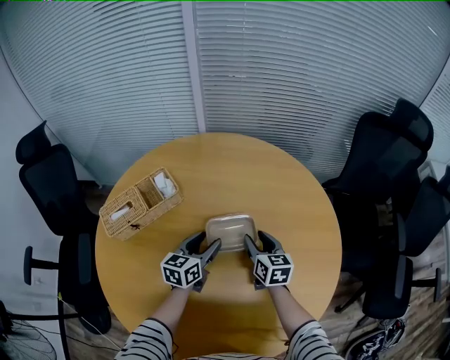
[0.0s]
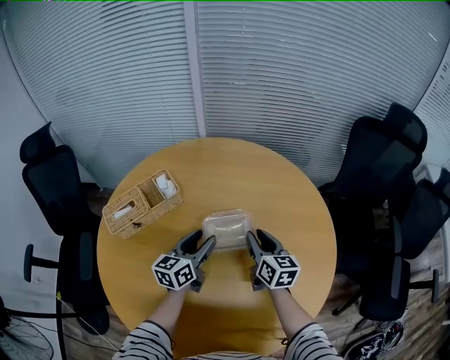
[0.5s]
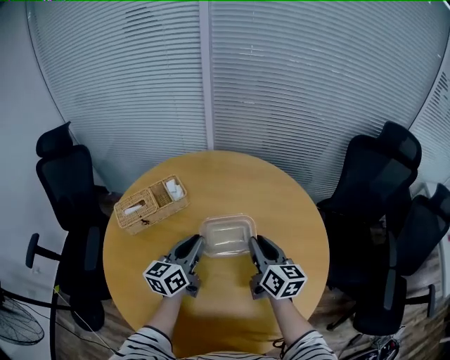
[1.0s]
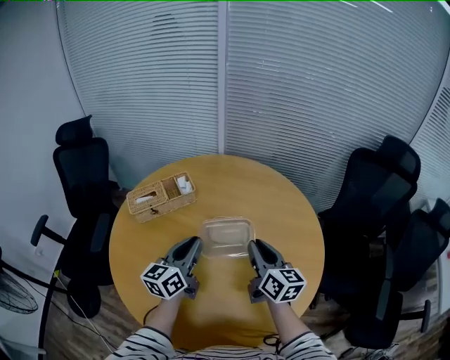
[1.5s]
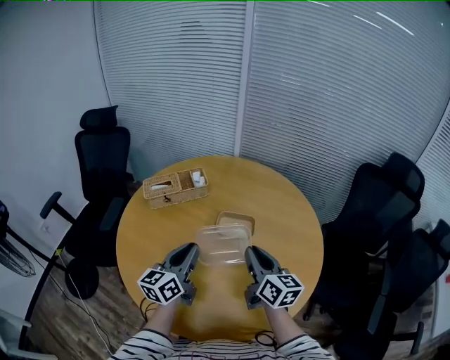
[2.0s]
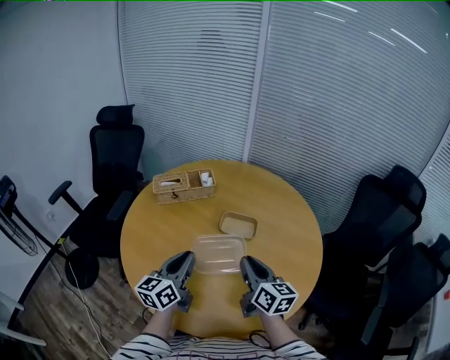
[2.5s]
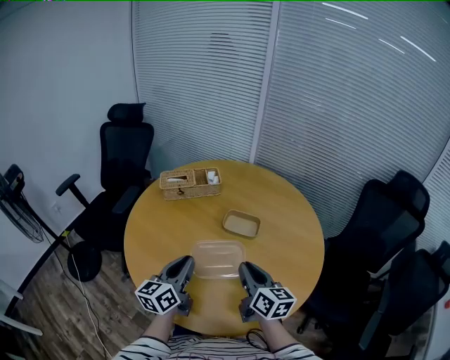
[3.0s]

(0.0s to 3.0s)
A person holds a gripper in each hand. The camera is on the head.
0.0s - 1.5s: The grippers both shift upward and backward by about 25 cm. The left gripper swivels some 30 degrees, and closes up; the right gripper swivels approximately 20 degrees, and closes its fingers.
1.5s - 3.0s: Both grippers travel together backward, about 15 cm.

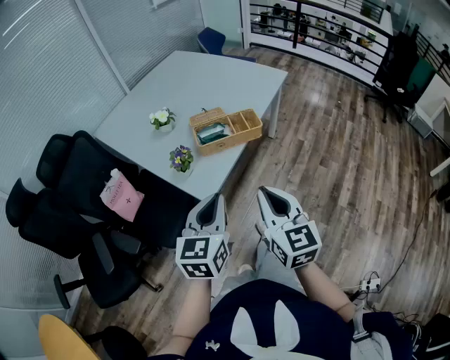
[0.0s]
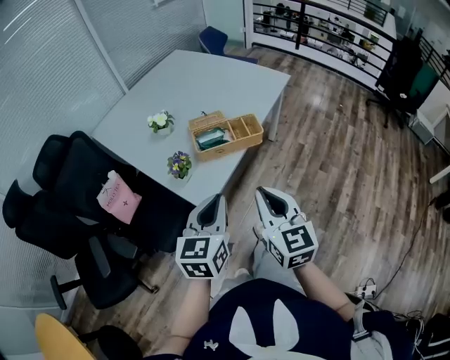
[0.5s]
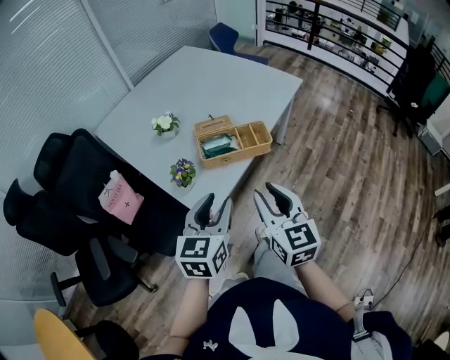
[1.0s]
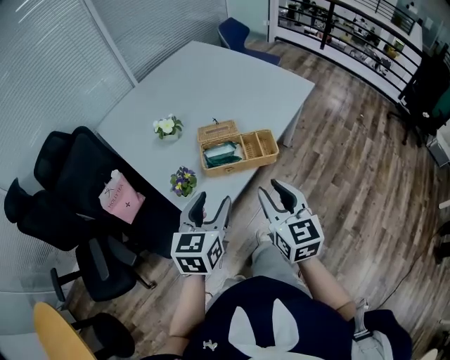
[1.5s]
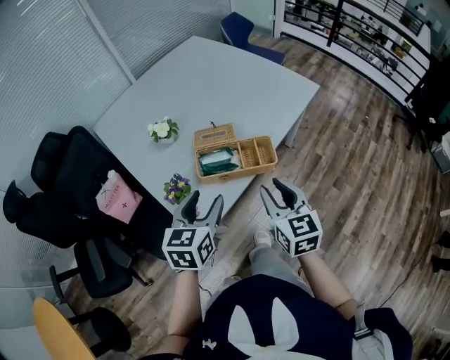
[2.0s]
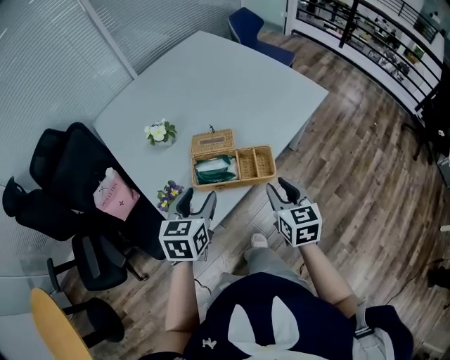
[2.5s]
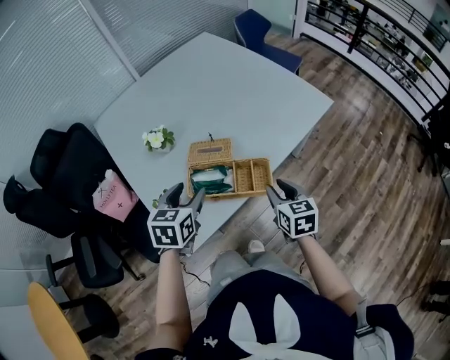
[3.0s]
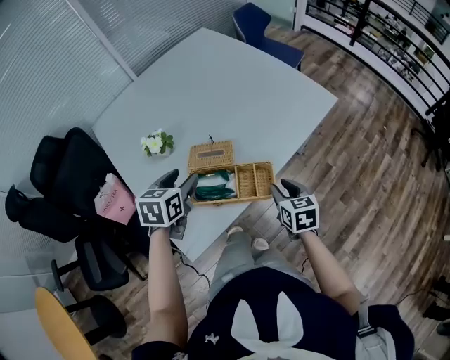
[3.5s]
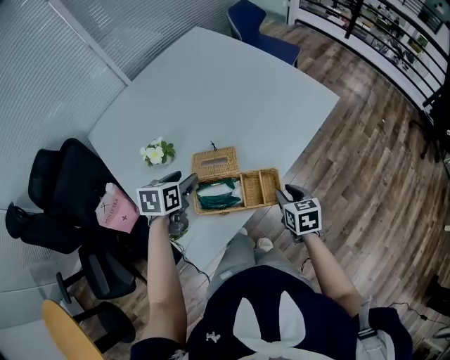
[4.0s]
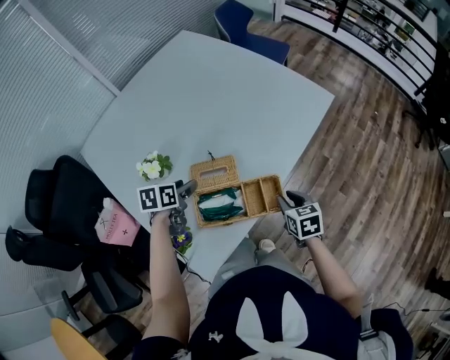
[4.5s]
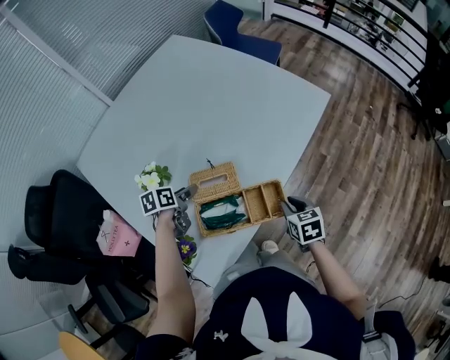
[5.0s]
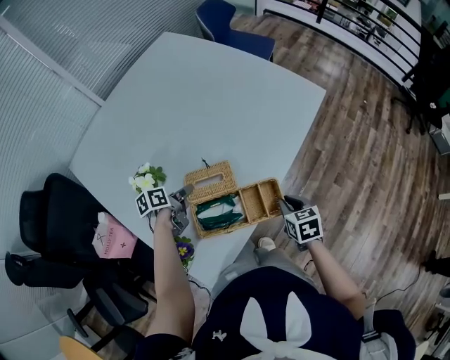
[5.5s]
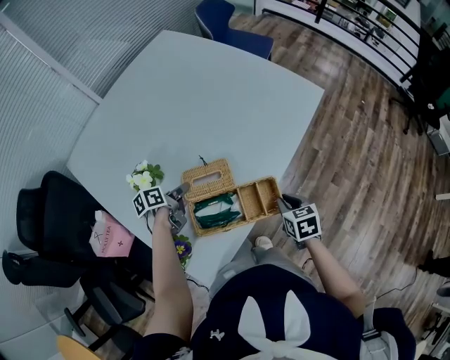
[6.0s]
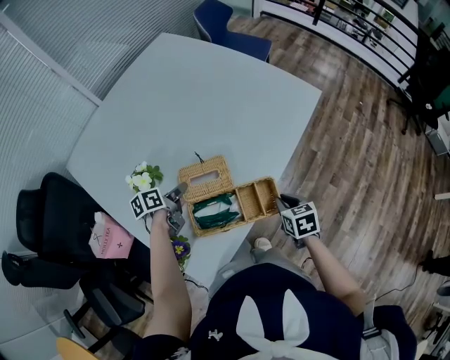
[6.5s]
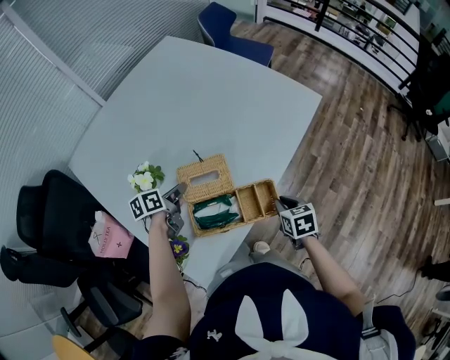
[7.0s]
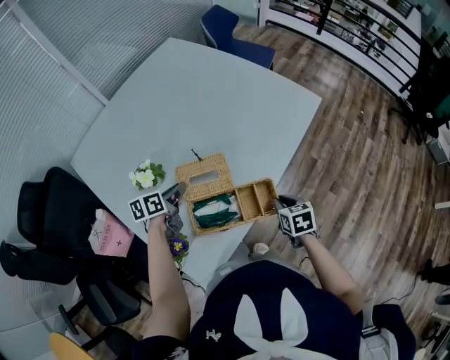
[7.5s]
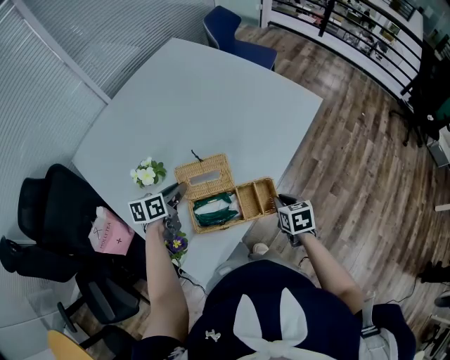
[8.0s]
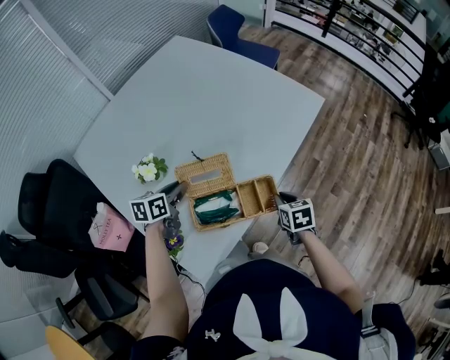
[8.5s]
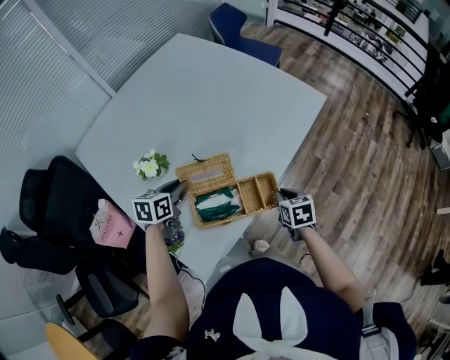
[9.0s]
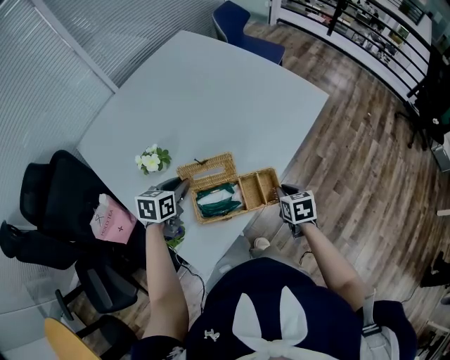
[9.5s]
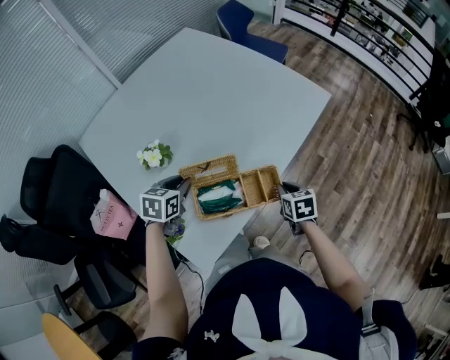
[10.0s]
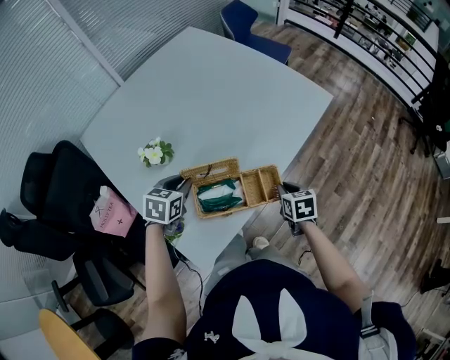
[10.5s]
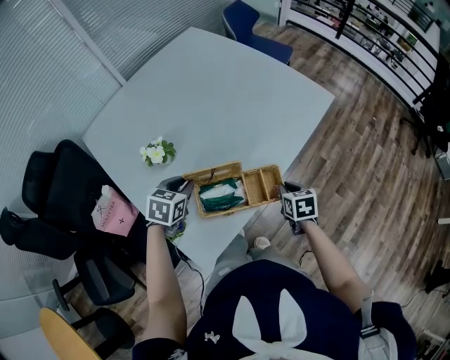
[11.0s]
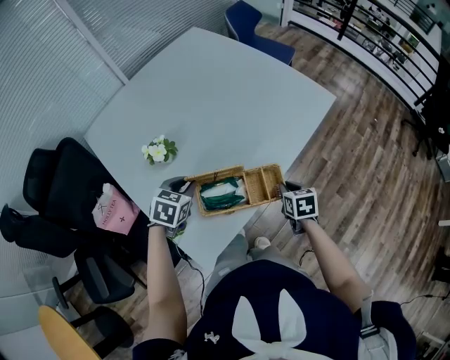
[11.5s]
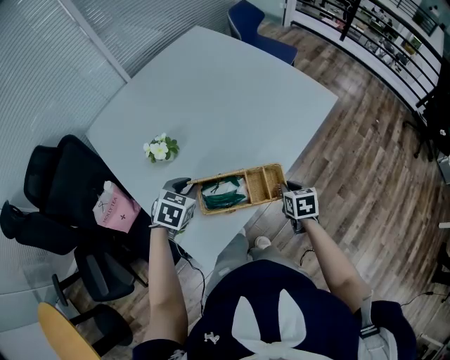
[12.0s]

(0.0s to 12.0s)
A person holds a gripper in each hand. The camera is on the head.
0.0s - 2.0s: Both grippers travel together forward, about 20 cm. The left gripper opens. The right gripper opens.
2.0s - 4.0s: The left gripper shifts roughly 25 cm forward and downward, and turns by some 20 degrees. The right gripper moves downward, forward and to the right, roughly 25 cm, and rotates roughly 30 degrees.
4.0s - 6.0s: The left gripper is displaced downward and forward by about 15 cm, rotates approximately 40 degrees, and closes its fingers.
6.0s - 8.0s: The left gripper travels upward by some 5 cm, and rotates about 30 degrees.
8.0s - 10.0s: The left gripper rotates about 30 degrees.
10.0s - 12.0s: The grippers make only small movements.

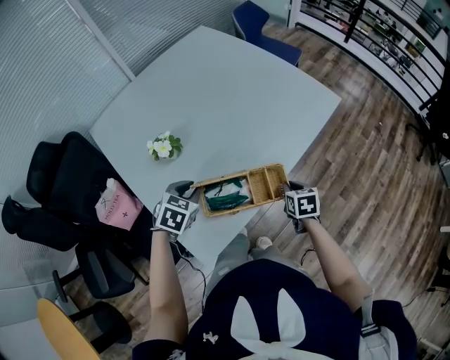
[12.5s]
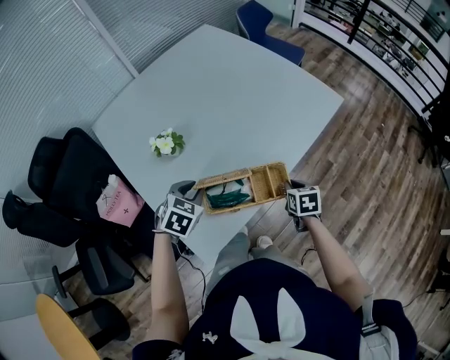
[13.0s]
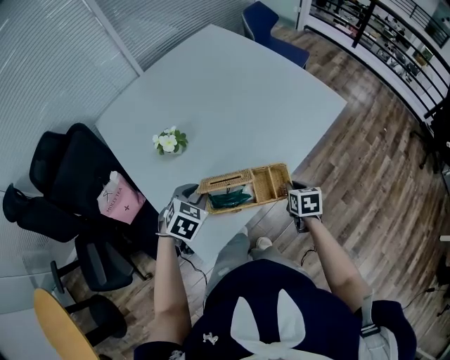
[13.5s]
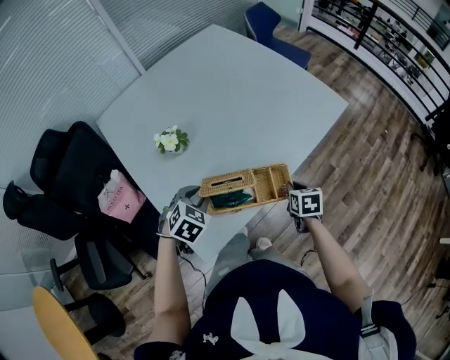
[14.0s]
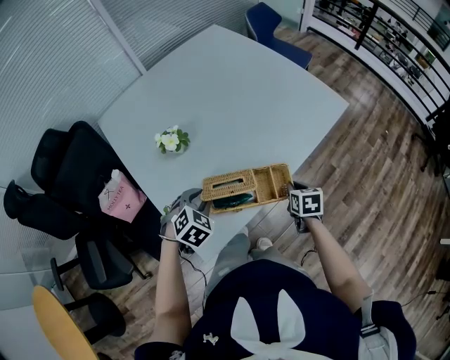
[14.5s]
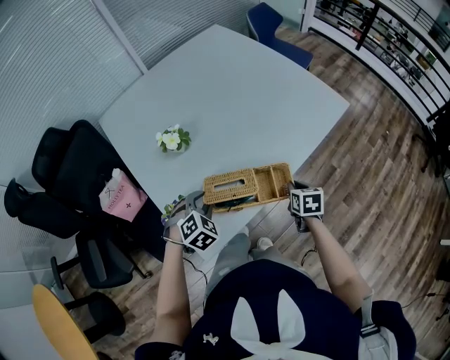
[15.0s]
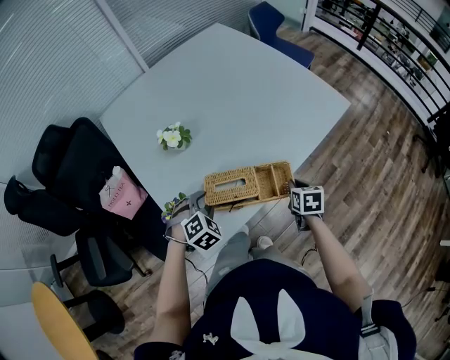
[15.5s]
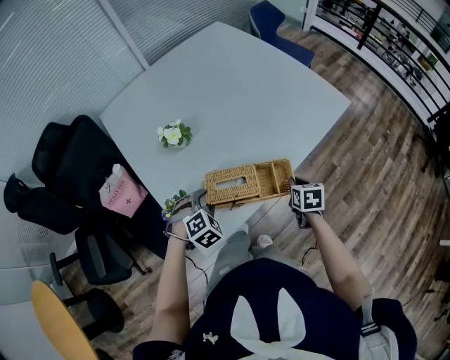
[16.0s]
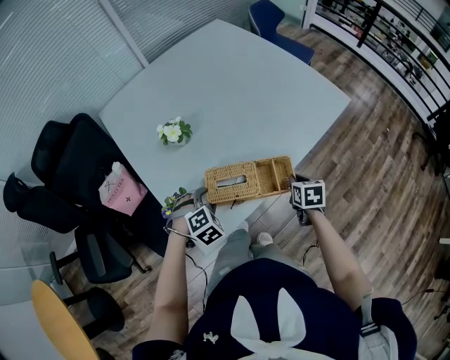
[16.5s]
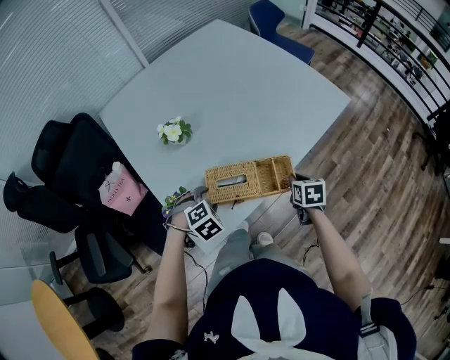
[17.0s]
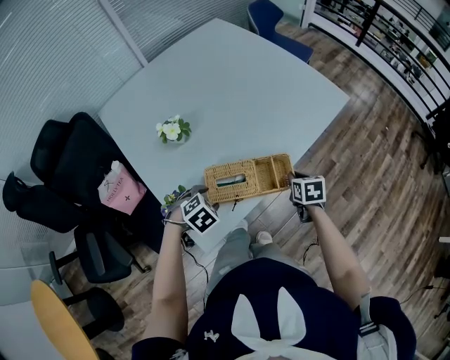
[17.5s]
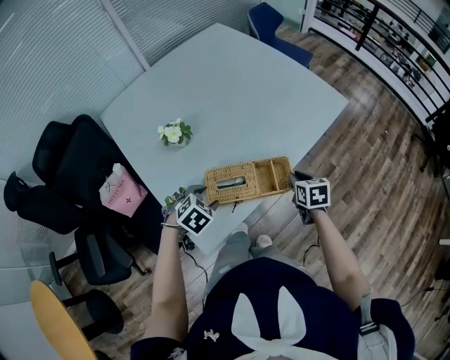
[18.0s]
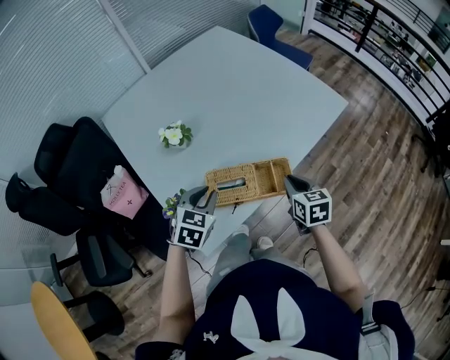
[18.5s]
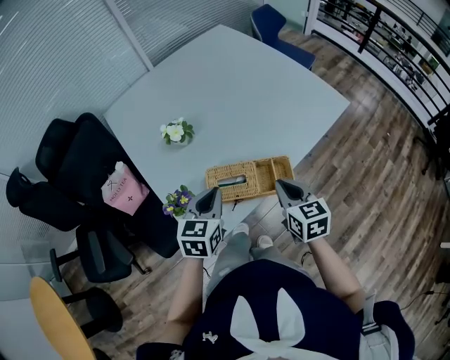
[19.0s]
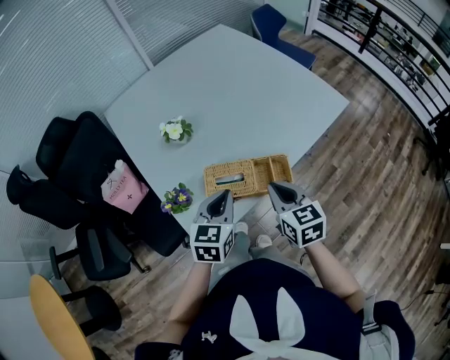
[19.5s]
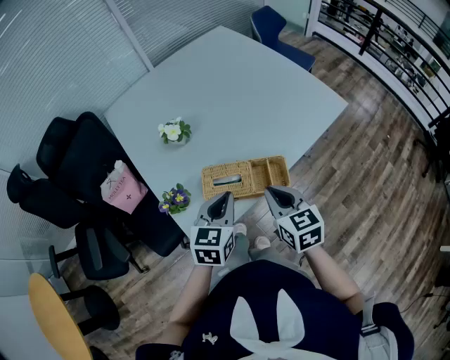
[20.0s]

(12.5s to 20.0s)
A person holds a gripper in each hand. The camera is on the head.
12.5s - 14.5s: The left gripper ends up some 5 cm from where it was.
14.5s - 16.5s: The left gripper heads downward, covering about 5 cm, and opens its fingers.
16.5s - 18.0s: The left gripper changes its angle by roughly 20 degrees.
18.0s - 20.0s: The right gripper travels upward, to the left and backward by roughly 20 cm, and swivels roughly 30 degrees; the left gripper is displaced upward and to the right by roughly 15 cm, tilts its fingers some 40 degrees upward, and closes its fingers.

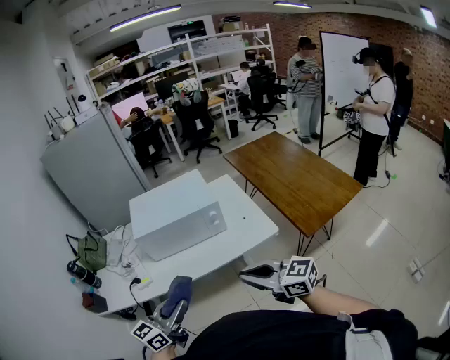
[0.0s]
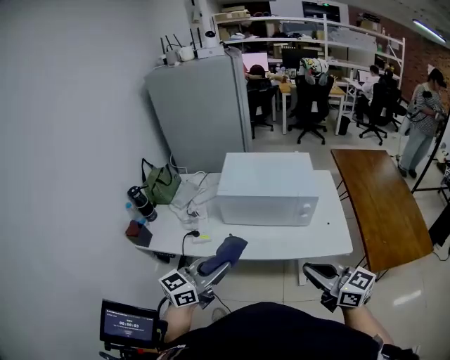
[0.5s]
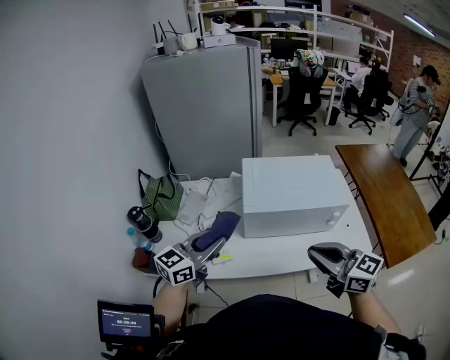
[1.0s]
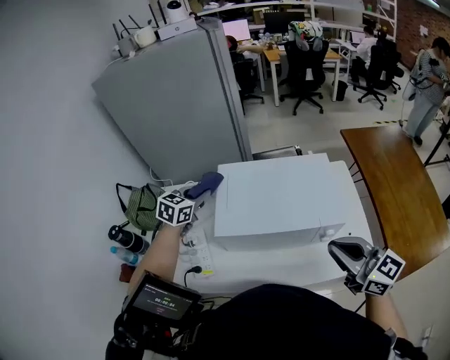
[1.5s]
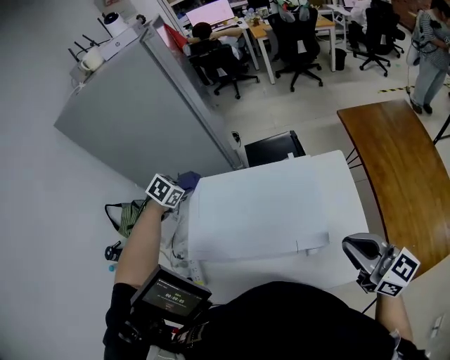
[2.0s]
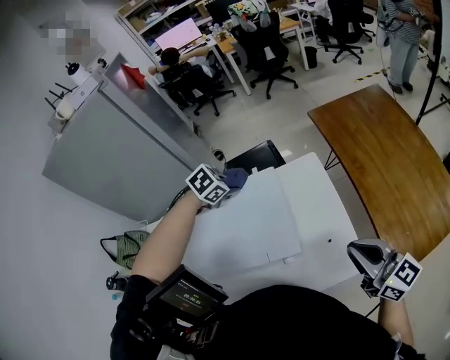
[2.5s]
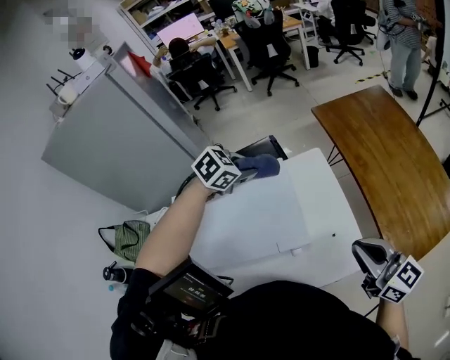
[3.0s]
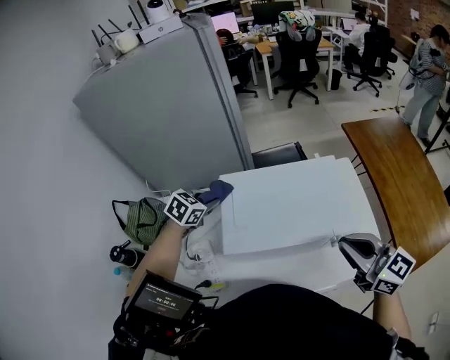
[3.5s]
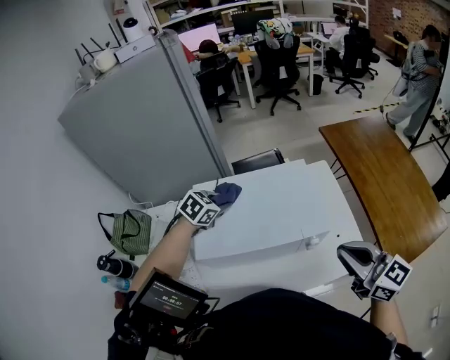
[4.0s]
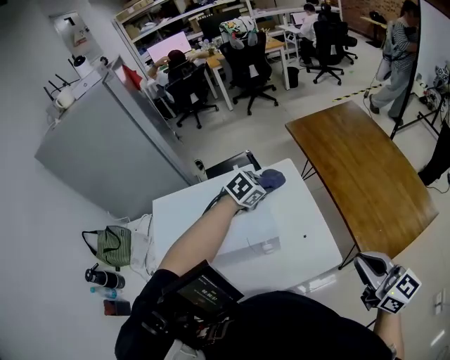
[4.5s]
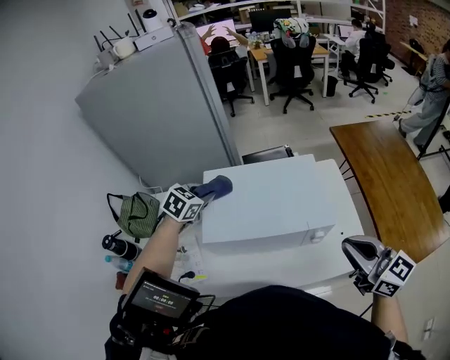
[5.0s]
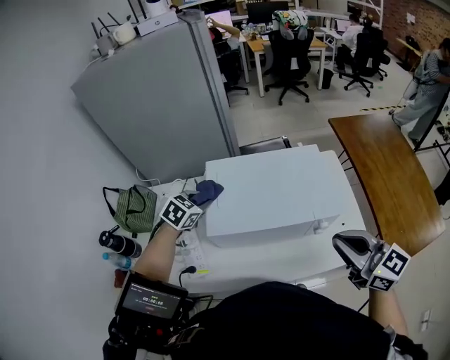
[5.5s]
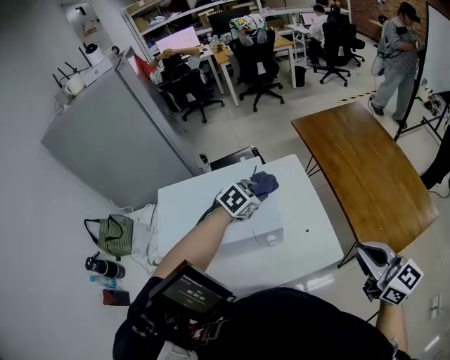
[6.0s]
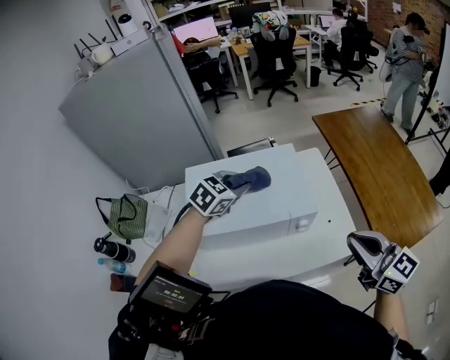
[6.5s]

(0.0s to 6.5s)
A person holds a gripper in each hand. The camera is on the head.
0.0s - 2.0s: Both grippers are carried forward, roughly 50 cm. The left gripper tips its fingers downward by roughly 70 degrees.
2.0s - 4.5s: The right gripper ends up about 20 cm from where it was, and turns by about 20 degrees. The left gripper shifts by some 50 cm, and turns by approximately 40 degrees.
4.5s - 6.5s: The left gripper swings up and down, approximately 10 cm each way, with 2 reversals.
